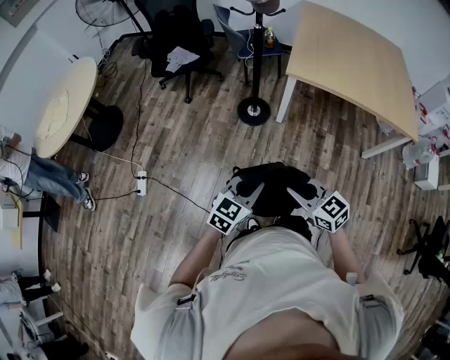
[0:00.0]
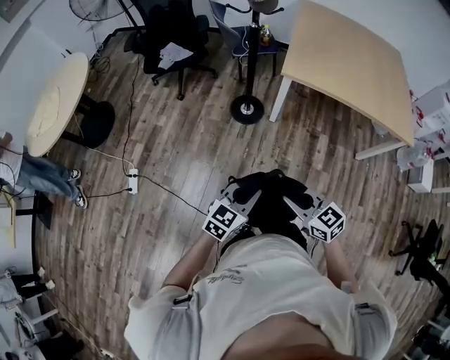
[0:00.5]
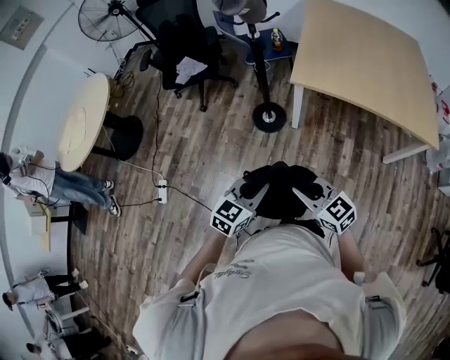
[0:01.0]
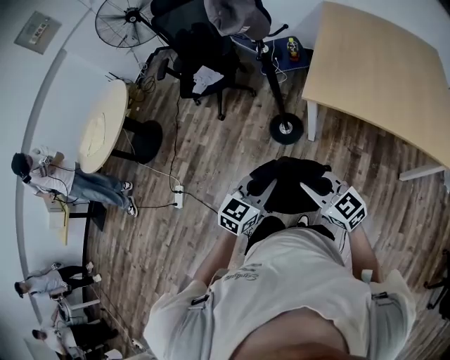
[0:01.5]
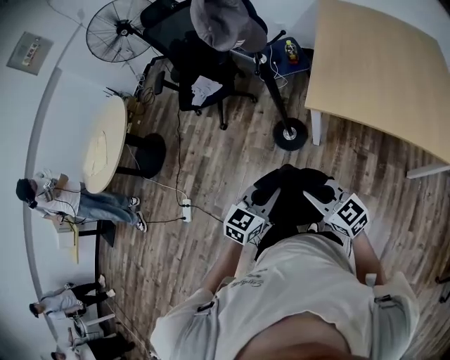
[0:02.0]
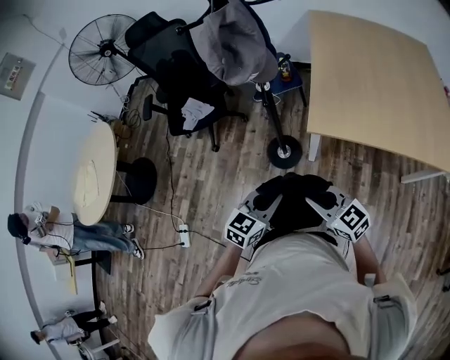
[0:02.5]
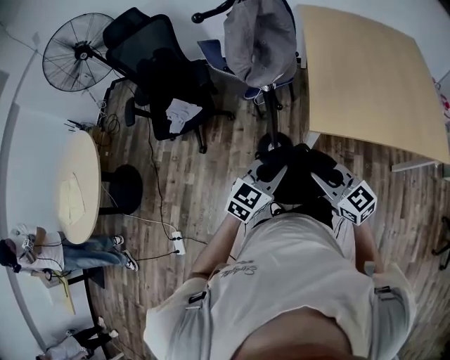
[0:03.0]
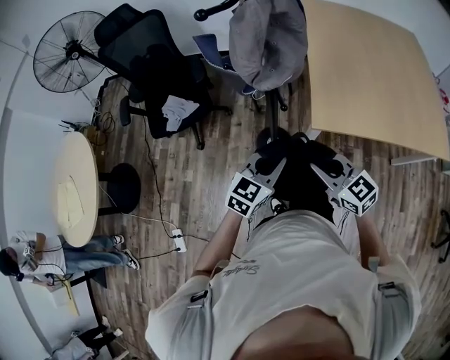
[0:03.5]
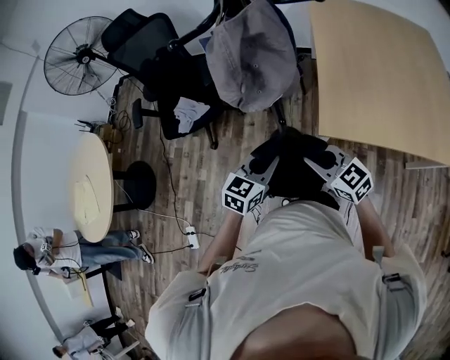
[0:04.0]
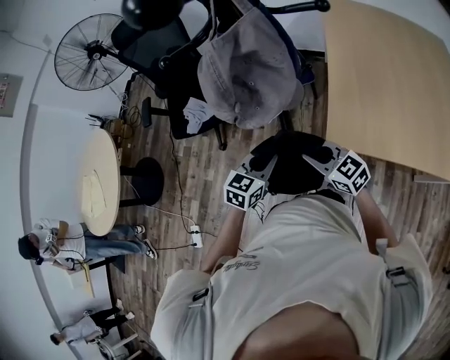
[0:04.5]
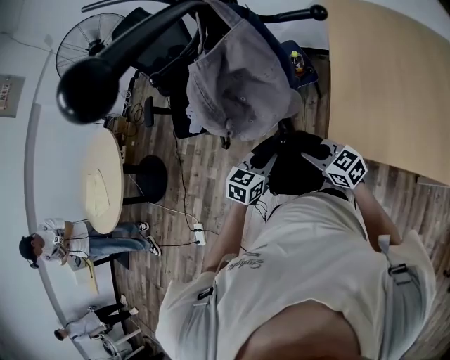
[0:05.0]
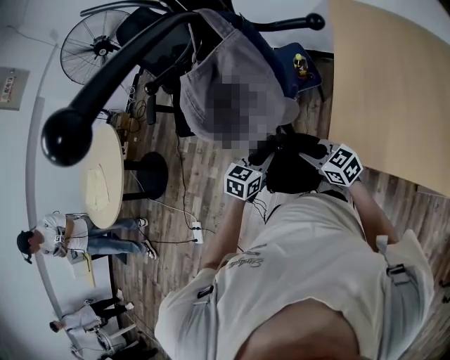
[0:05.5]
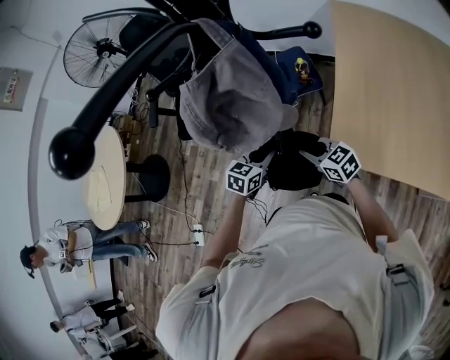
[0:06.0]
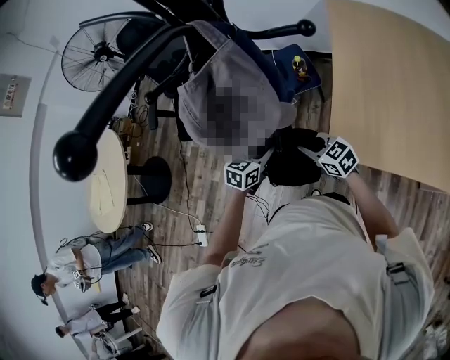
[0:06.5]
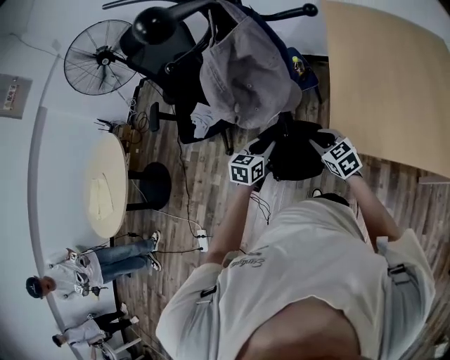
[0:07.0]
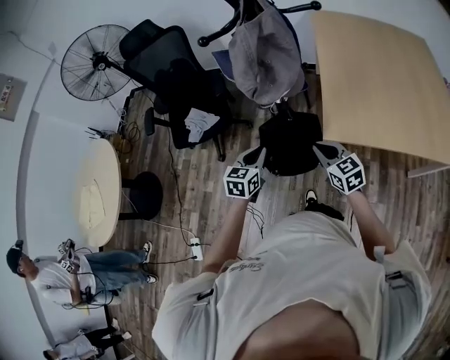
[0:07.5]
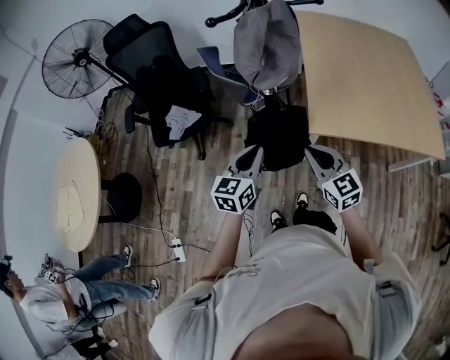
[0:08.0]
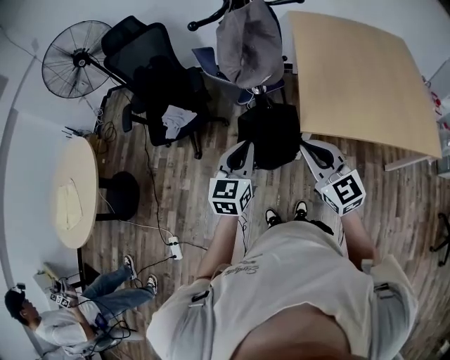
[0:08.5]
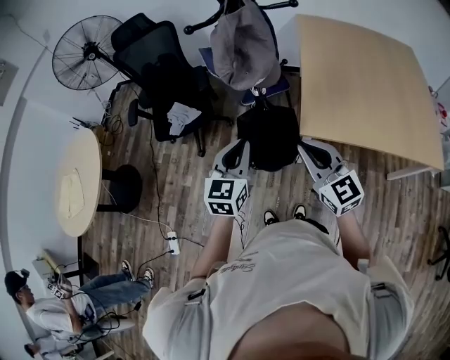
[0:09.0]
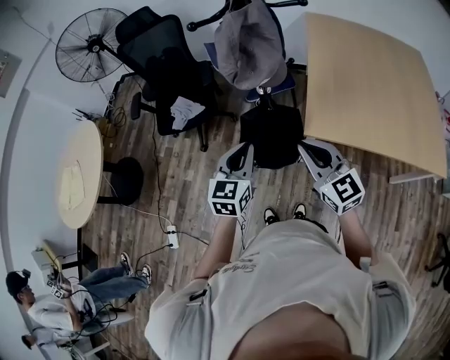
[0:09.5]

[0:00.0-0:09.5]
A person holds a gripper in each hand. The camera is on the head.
0:00.0 to 0:02.0: Both grippers move forward, some 25 cm.
0:02.0 to 0:04.0: The grippers both shift forward by approximately 30 cm.
0:04.0 to 0:05.5: Both grippers travel together forward and downward, some 10 cm.
0:05.5 to 0:07.5: The left gripper moves to the left and backward, about 10 cm. The right gripper travels backward by some 10 cm, and rotates approximately 30 degrees.
0:07.5 to 0:09.5: Both grippers move upward and backward, roughly 15 cm. The right gripper turns by approximately 20 degrees.

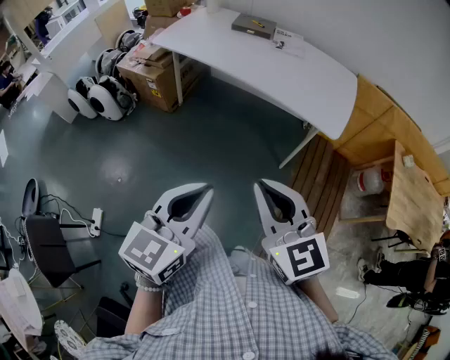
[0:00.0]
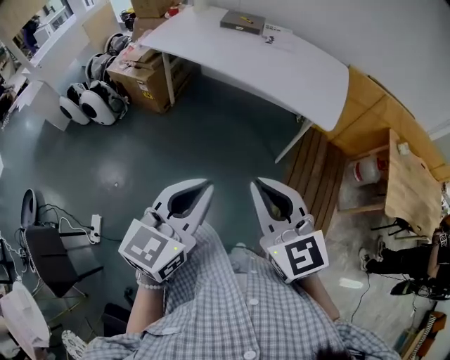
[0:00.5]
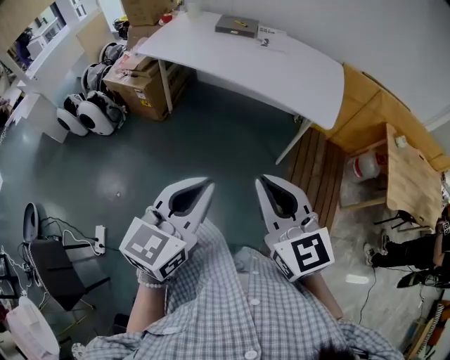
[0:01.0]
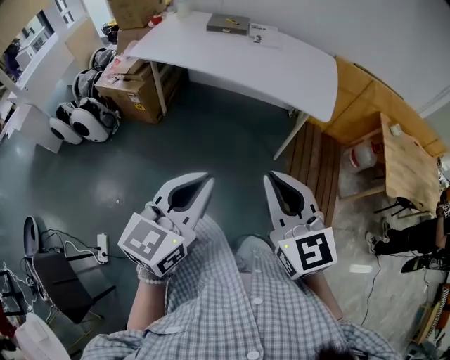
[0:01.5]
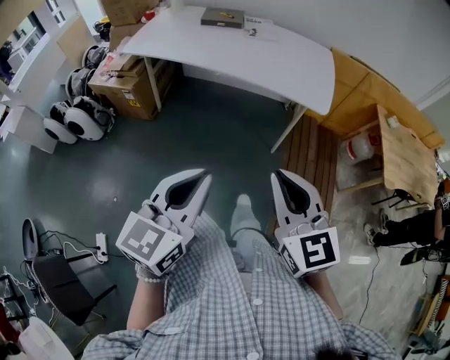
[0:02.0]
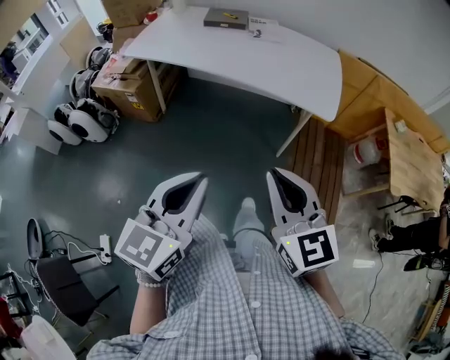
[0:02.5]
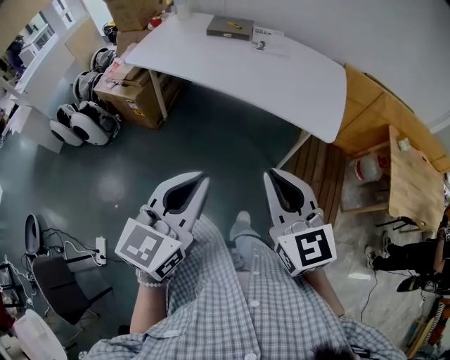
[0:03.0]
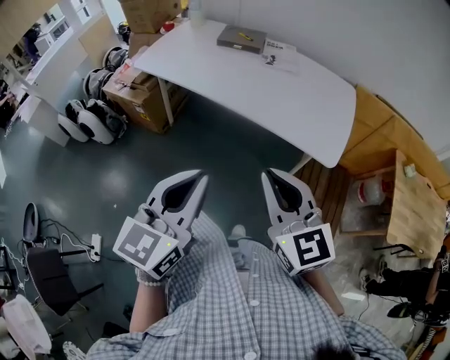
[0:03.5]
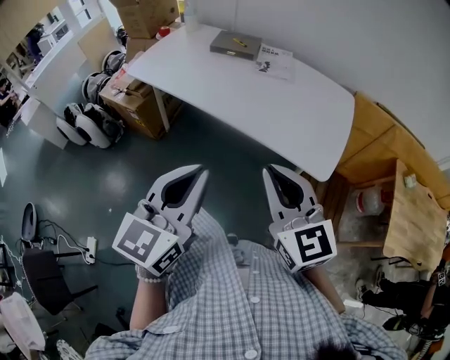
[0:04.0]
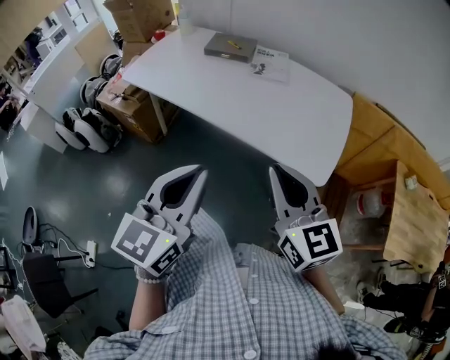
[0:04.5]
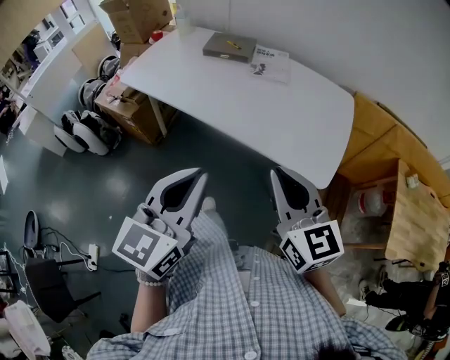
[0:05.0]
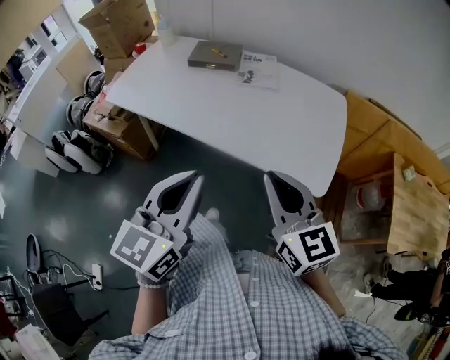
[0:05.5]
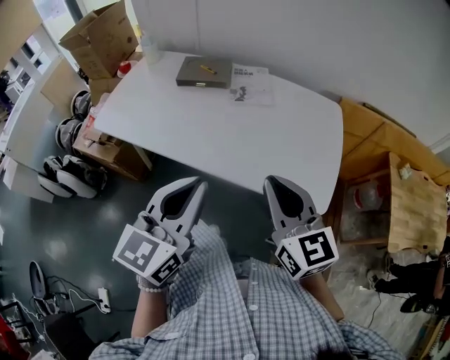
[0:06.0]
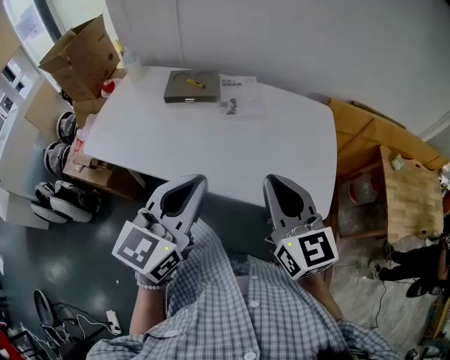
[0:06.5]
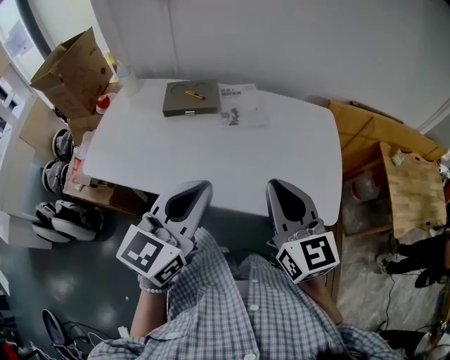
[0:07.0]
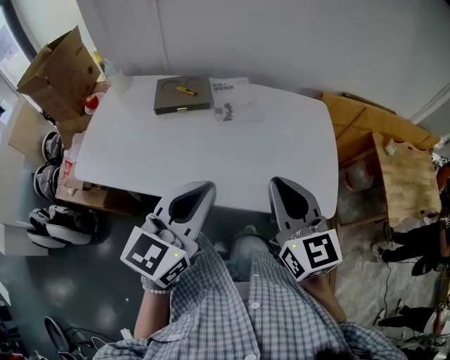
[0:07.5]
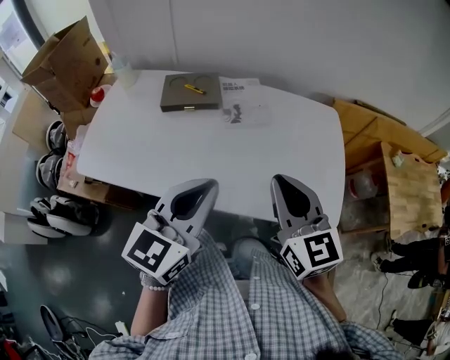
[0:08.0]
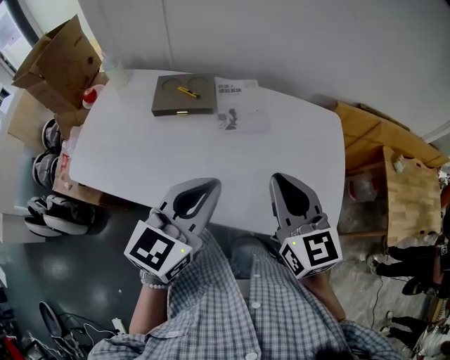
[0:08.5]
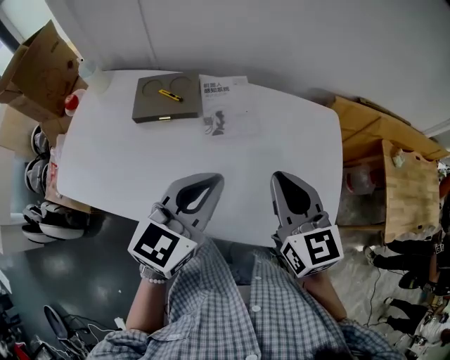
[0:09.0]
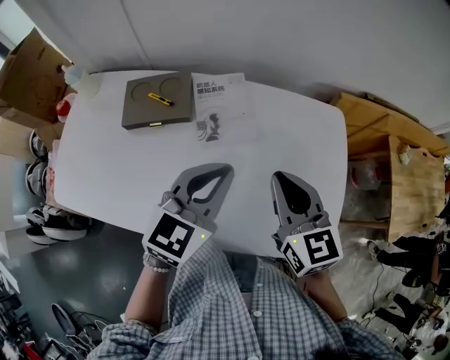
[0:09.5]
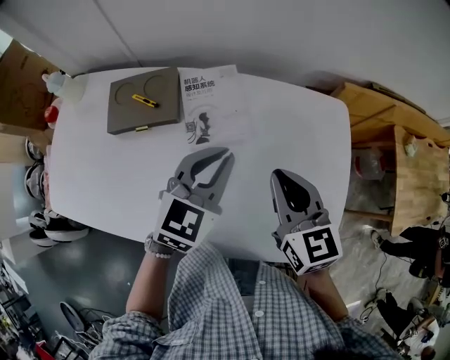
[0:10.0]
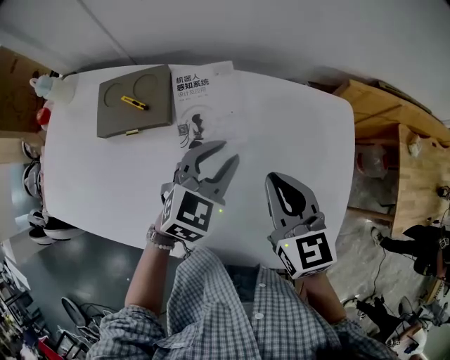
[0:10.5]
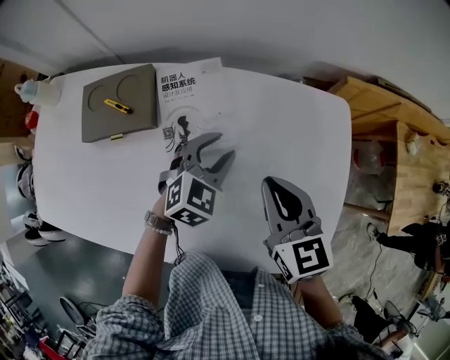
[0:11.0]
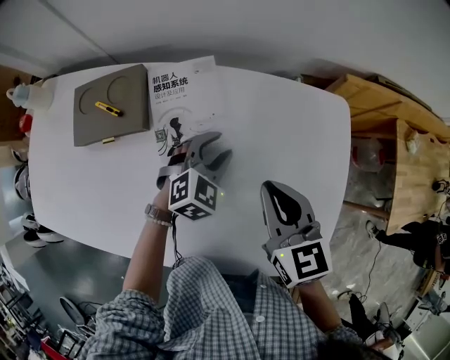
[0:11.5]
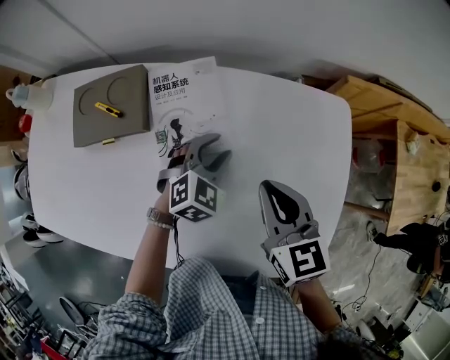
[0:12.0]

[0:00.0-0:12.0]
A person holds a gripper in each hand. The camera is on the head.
0:00.0 to 0:02.0: The left gripper changes place by approximately 5 cm.
0:02.0 to 0:04.0: The right gripper moves forward, some 25 cm; the left gripper travels forward and to the right by approximately 20 cm.
0:04.0 to 0:06.0: The two grippers go about 15 cm forward.
0:06.0 to 0:08.0: The grippers both shift forward and to the left by some 15 cm.
0:08.0 to 0:10.0: Both grippers travel together forward and downward, approximately 25 cm. The left gripper turns by about 20 degrees.
0:10.0 to 0:12.0: The left gripper shifts about 20 cm downward and forward, rotates some 30 degrees, and opens up. The right gripper is displaced downward by about 5 cm.

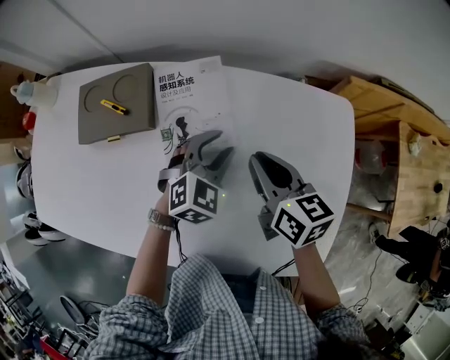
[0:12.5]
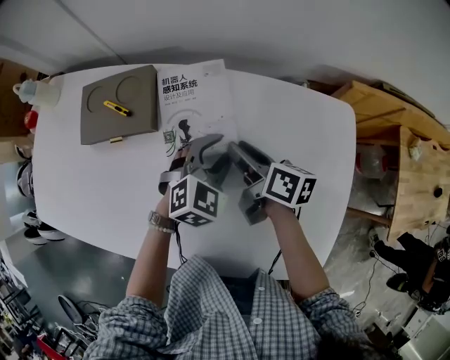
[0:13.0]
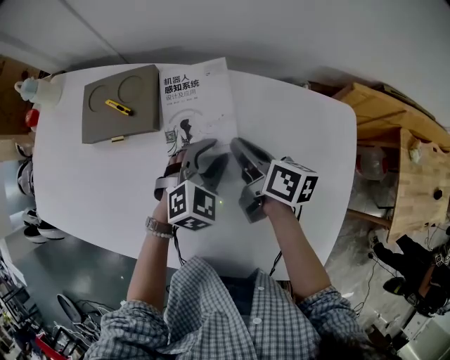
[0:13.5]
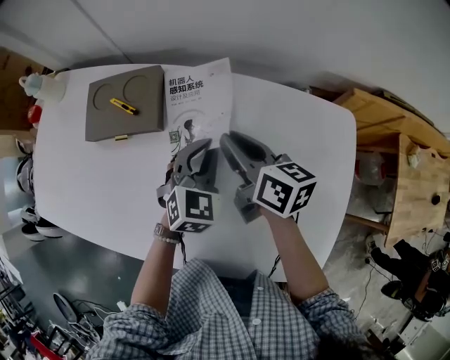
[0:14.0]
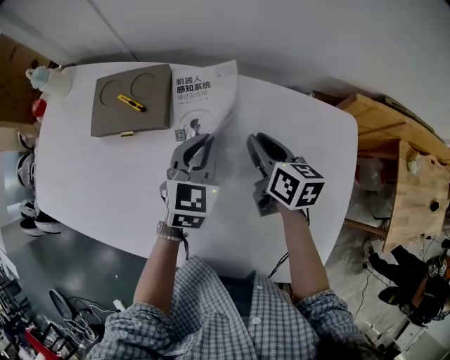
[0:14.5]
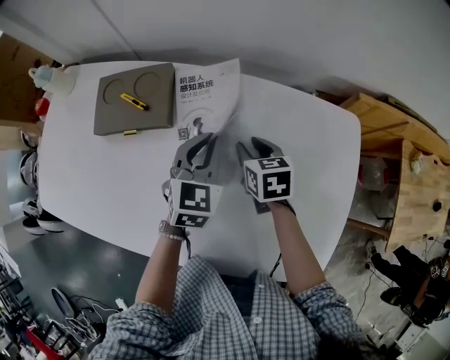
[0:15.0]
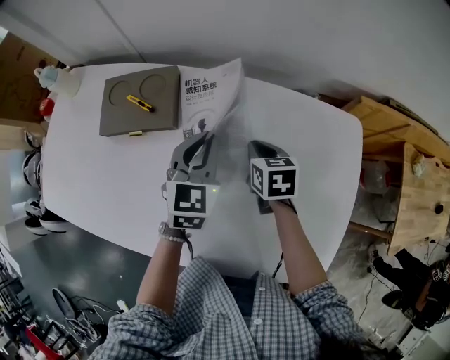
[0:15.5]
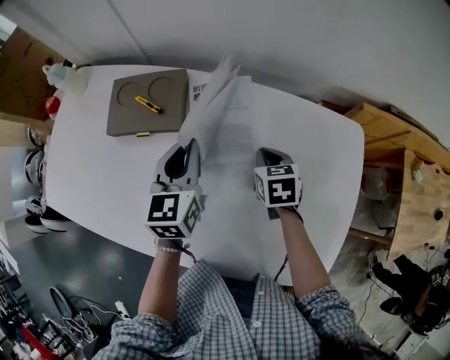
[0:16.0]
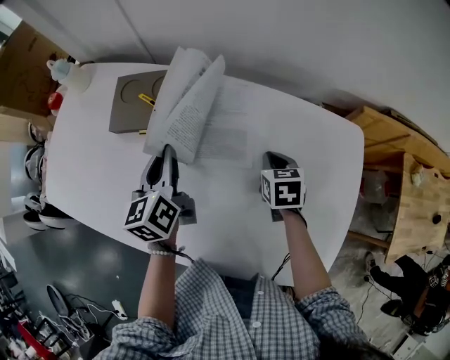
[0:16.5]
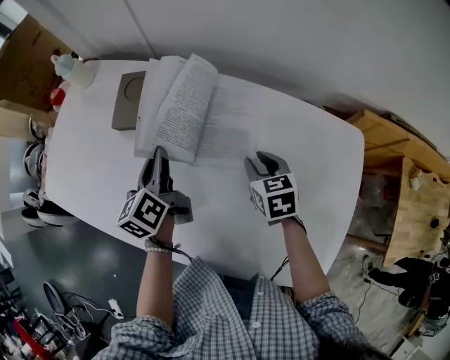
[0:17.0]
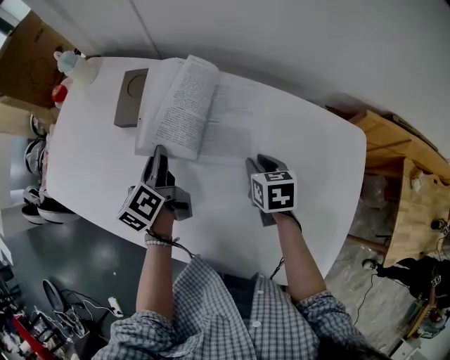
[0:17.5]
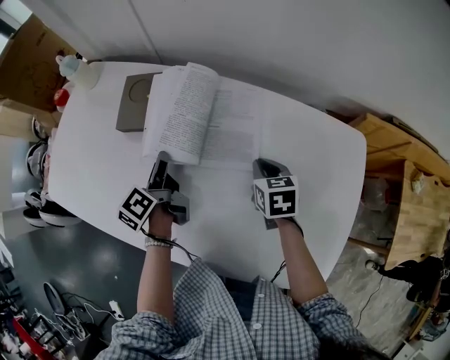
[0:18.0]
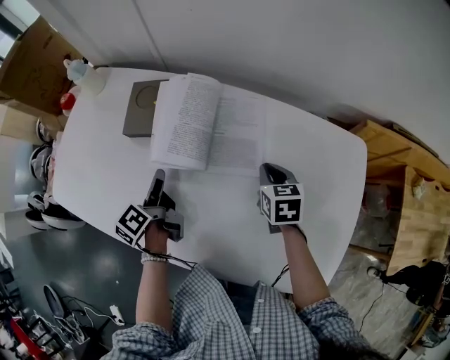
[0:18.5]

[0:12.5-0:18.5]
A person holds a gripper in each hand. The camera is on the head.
0:12.5 to 0:14.5: The left gripper shifts roughly 5 cm to the left, swivels some 30 degrees, and closes its fingers, while the right gripper shifts some 5 cm forward.
0:14.5 to 0:16.5: The right gripper shifts about 5 cm downward, and changes its angle by approximately 30 degrees; the left gripper is displaced to the left by about 15 cm, and twists roughly 40 degrees counterclockwise, seen from behind.
0:16.5 to 0:18.5: The right gripper opens and closes again, while the left gripper is displaced to the left and downward by approximately 10 cm, swivels about 40 degrees, and opens its fingers.
